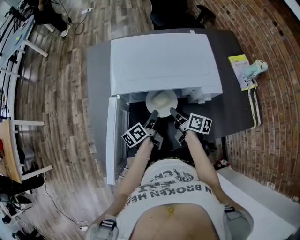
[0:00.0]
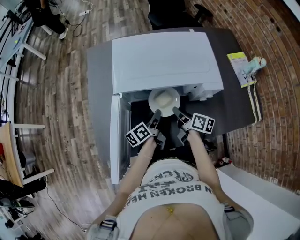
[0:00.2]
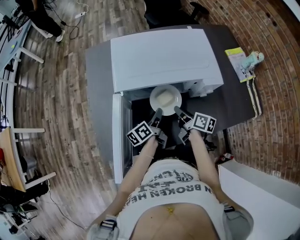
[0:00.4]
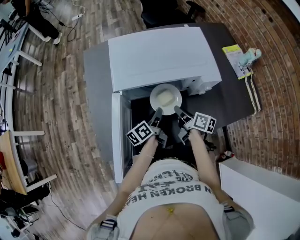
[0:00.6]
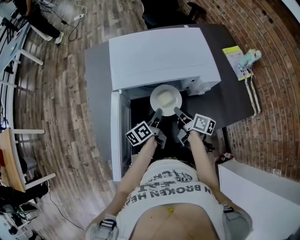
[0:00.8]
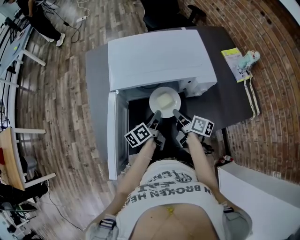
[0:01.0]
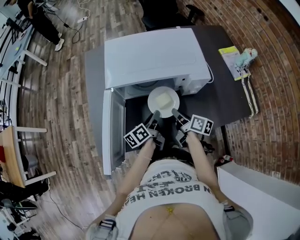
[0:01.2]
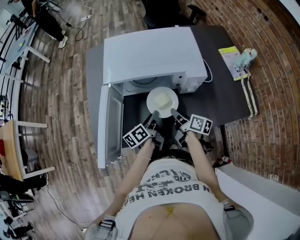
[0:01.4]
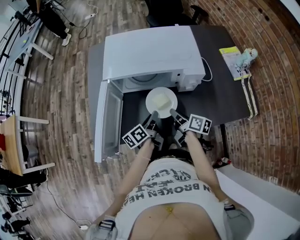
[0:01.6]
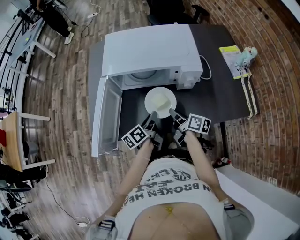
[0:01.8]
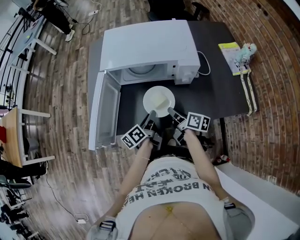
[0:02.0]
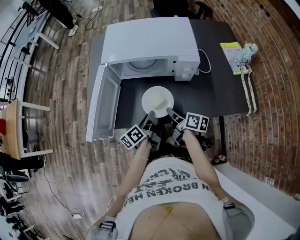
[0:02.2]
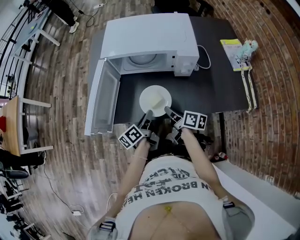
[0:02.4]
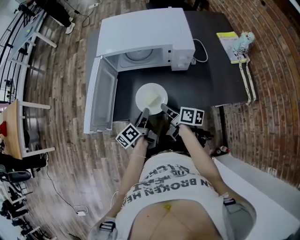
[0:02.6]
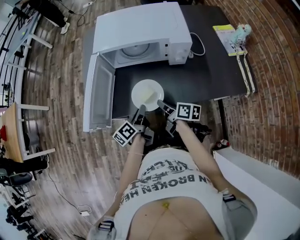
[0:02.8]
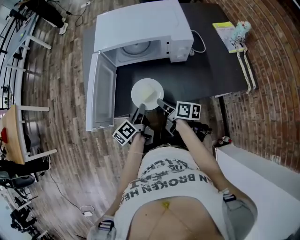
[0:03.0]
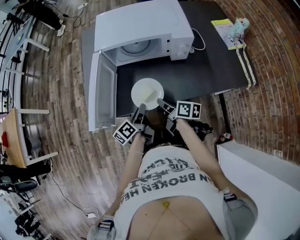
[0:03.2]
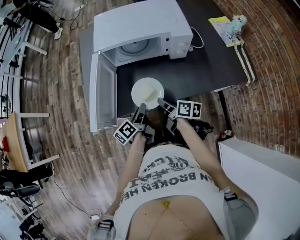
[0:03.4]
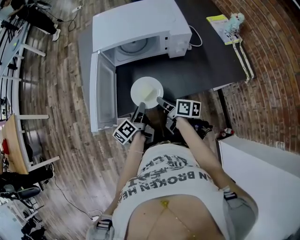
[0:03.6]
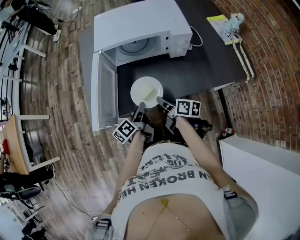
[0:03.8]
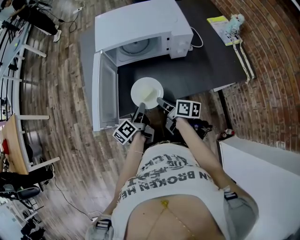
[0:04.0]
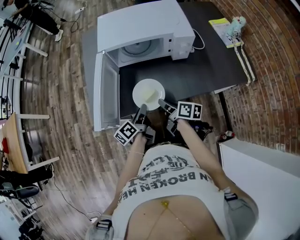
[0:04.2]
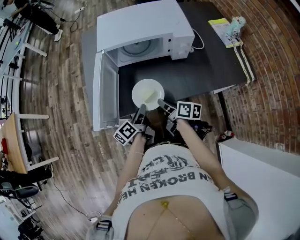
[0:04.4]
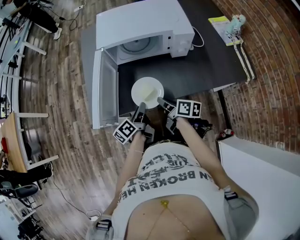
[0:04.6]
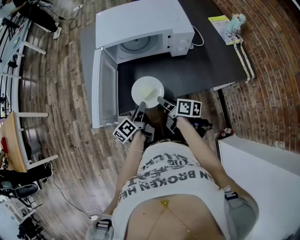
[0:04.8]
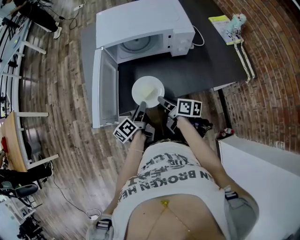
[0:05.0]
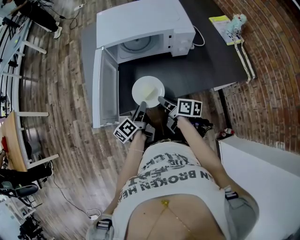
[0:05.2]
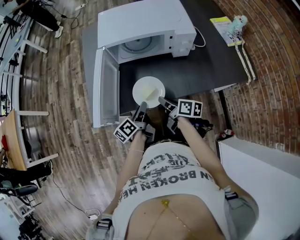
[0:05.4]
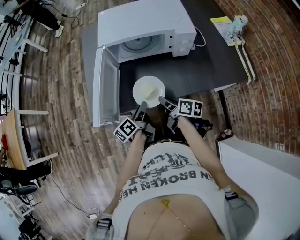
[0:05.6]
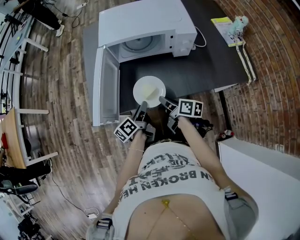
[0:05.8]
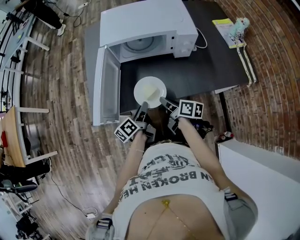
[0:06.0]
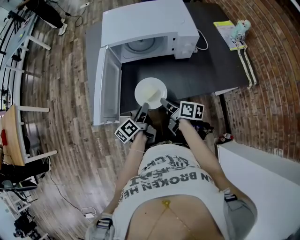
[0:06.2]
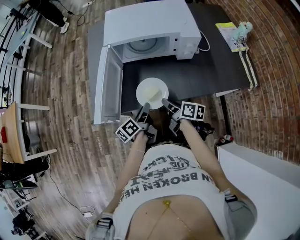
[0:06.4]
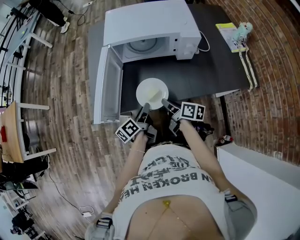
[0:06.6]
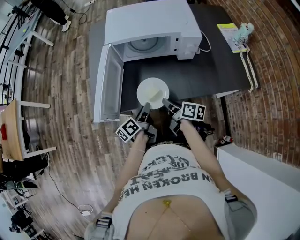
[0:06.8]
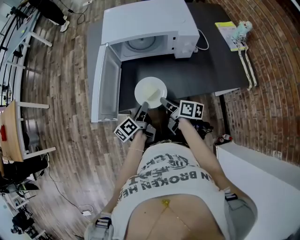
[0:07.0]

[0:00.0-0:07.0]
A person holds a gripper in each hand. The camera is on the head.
0:00.0 to 0:01.4: Both grippers travel together backward, roughly 5 cm.
0:01.4 to 0:02.8: The grippers both shift backward by about 15 cm.
0:02.8 to 0:04.2: The grippers stay close to where they were, moving slightly.
0:04.2 to 0:07.0: Neither gripper changes place.

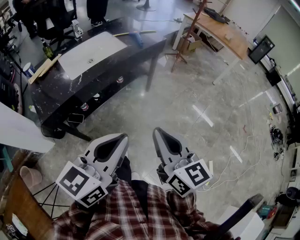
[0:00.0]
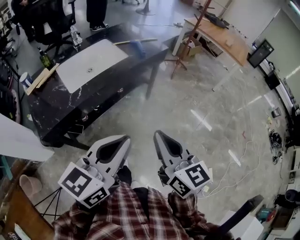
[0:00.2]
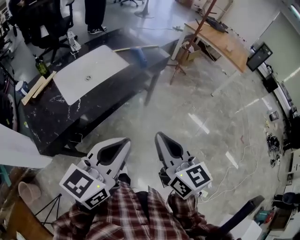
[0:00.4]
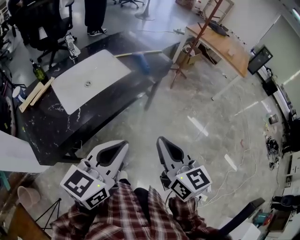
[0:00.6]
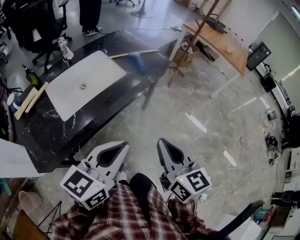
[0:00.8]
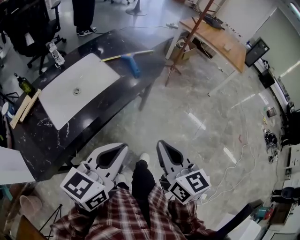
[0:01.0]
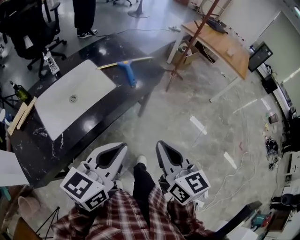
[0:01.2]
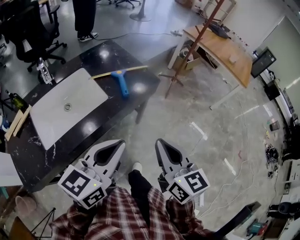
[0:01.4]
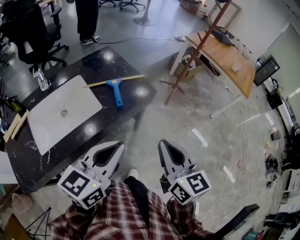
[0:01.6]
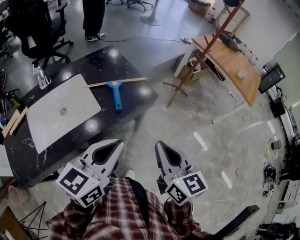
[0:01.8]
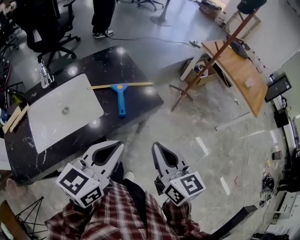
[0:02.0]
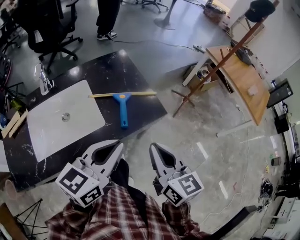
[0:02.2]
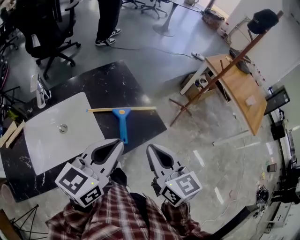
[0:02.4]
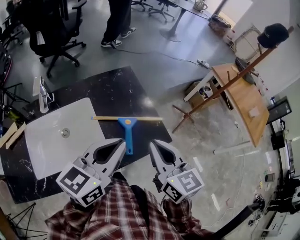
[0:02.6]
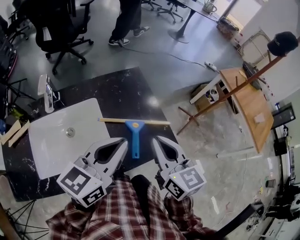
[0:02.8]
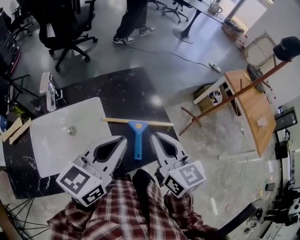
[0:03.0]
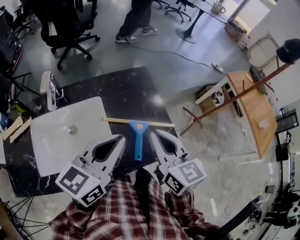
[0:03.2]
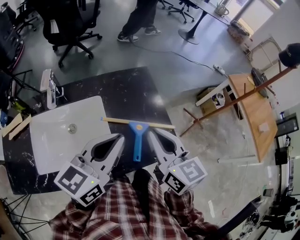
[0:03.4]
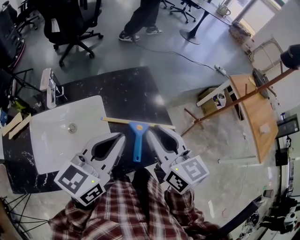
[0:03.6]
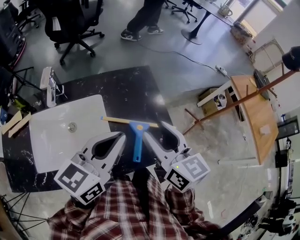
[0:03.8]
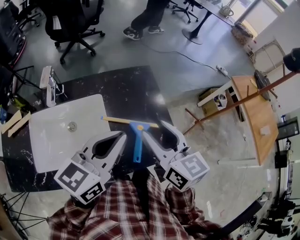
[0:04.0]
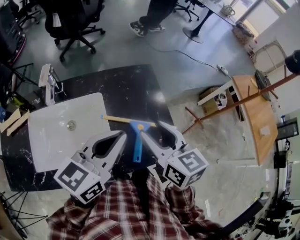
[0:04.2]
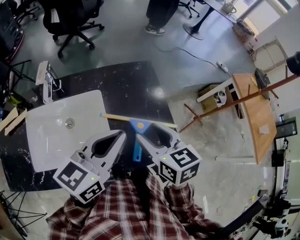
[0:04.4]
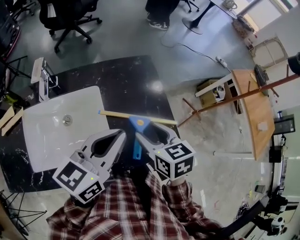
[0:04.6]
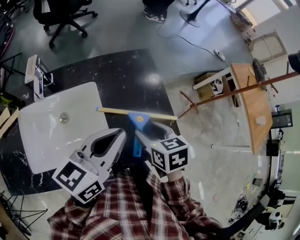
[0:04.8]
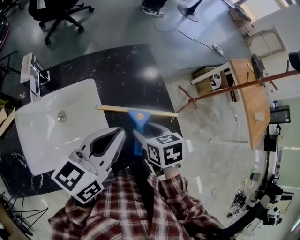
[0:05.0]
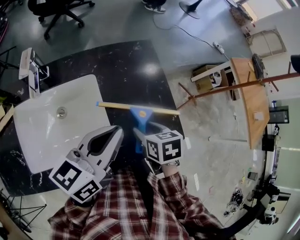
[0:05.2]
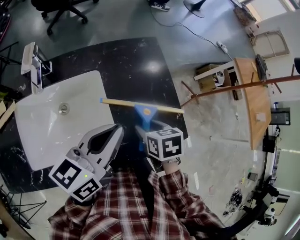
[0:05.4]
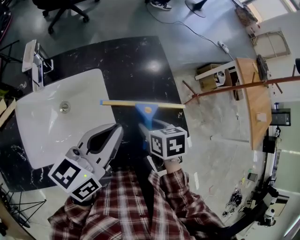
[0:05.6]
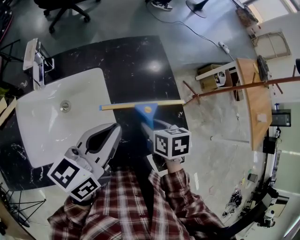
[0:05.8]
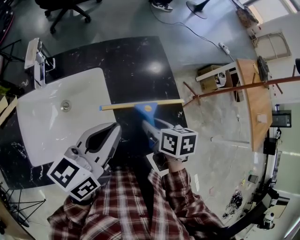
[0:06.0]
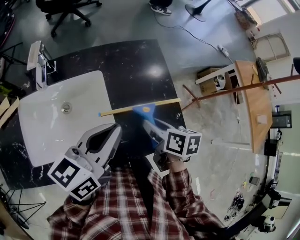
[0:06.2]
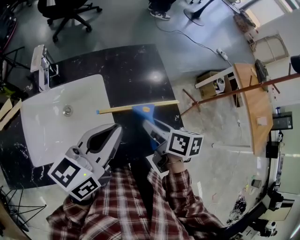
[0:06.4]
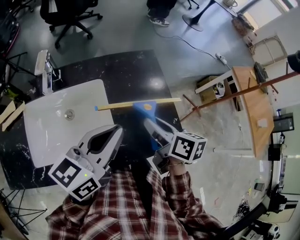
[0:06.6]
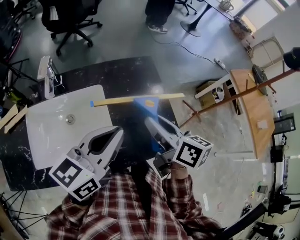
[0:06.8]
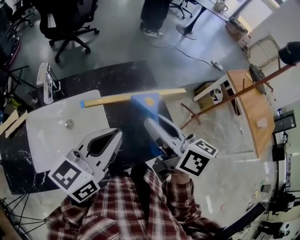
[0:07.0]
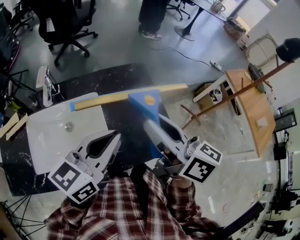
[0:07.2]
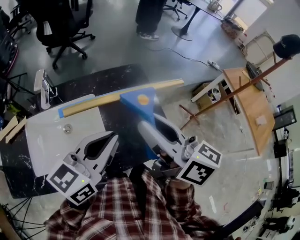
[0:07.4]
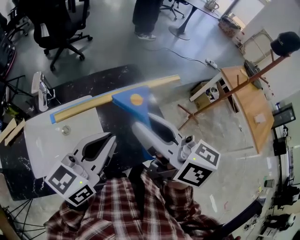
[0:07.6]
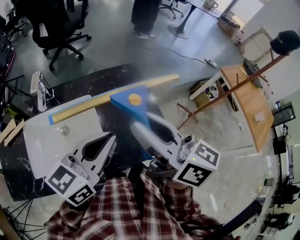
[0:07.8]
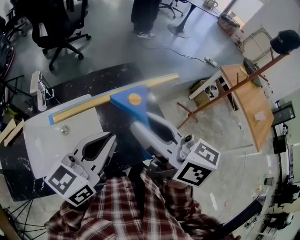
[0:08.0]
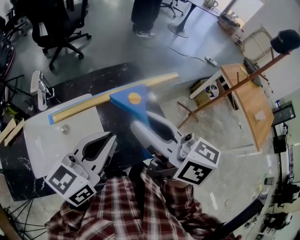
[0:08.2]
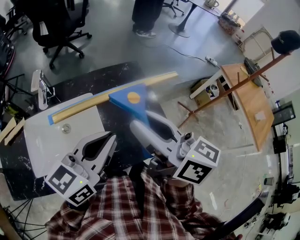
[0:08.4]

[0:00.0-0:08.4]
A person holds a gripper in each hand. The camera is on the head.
0:00.0 to 0:01.4: Both grippers move forward, roughly 40 cm.
0:01.4 to 0:02.8: Both grippers travel together forward, about 30 cm. The right gripper rotates about 20 degrees.
0:02.8 to 0:04.2: The right gripper heads forward, covering approximately 5 cm, and opens its fingers.
0:04.2 to 0:05.6: The right gripper shifts roughly 20 cm downward, and angles its fingers downward, by approximately 40 degrees. The left gripper travels downward by approximately 5 cm.
0:05.6 to 0:07.0: The left gripper goes roughly 5 cm upward; the right gripper shifts some 20 cm upward, and angles its fingers upward, by some 50 degrees.
0:07.0 to 0:08.4: The right gripper heads upward, covering about 5 cm.

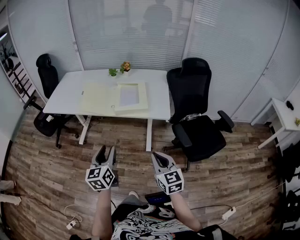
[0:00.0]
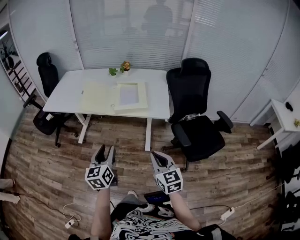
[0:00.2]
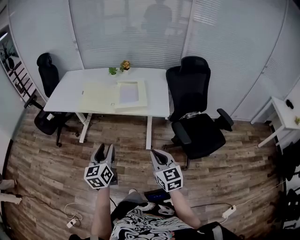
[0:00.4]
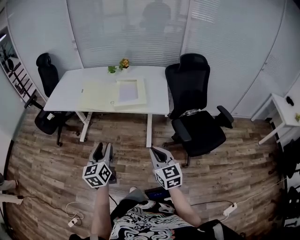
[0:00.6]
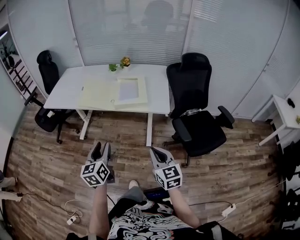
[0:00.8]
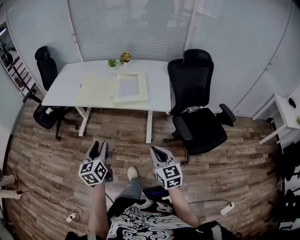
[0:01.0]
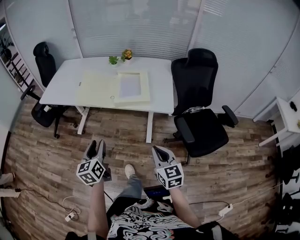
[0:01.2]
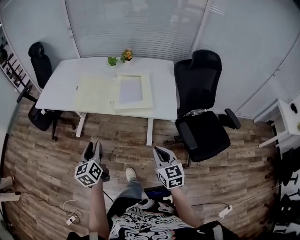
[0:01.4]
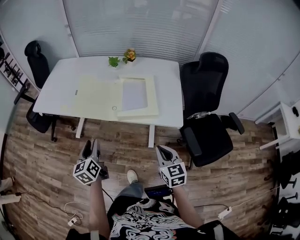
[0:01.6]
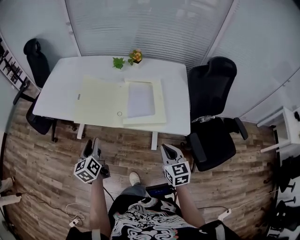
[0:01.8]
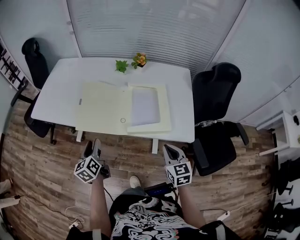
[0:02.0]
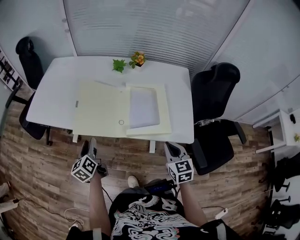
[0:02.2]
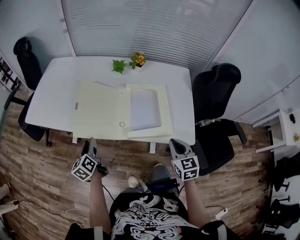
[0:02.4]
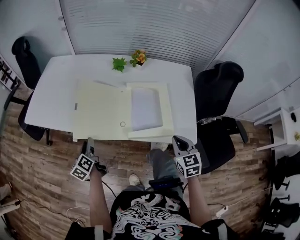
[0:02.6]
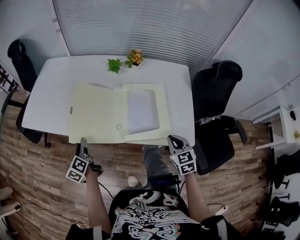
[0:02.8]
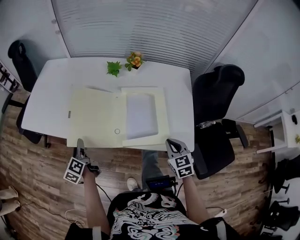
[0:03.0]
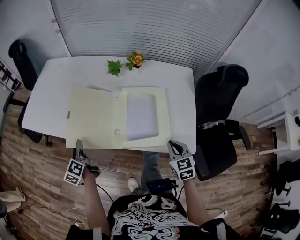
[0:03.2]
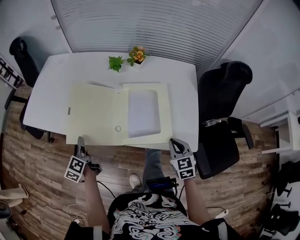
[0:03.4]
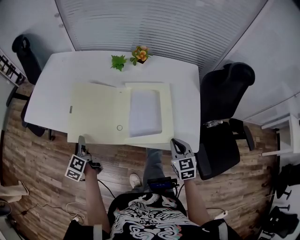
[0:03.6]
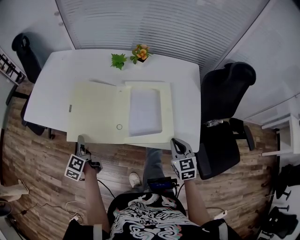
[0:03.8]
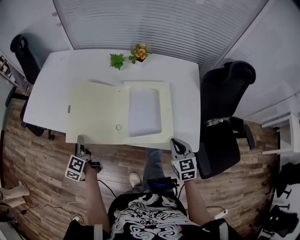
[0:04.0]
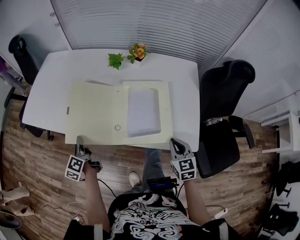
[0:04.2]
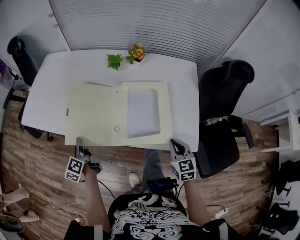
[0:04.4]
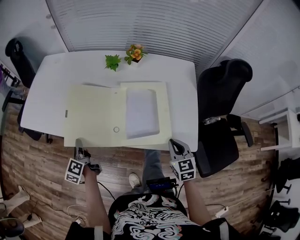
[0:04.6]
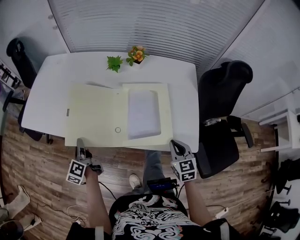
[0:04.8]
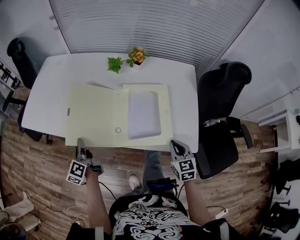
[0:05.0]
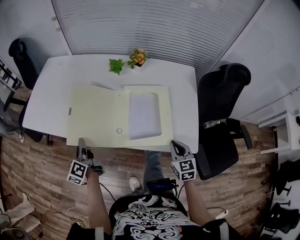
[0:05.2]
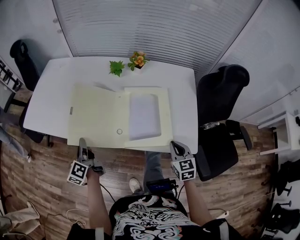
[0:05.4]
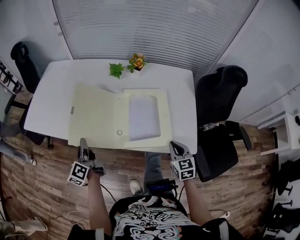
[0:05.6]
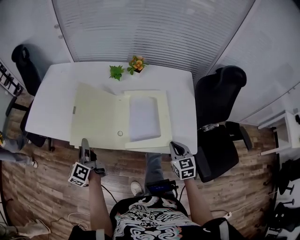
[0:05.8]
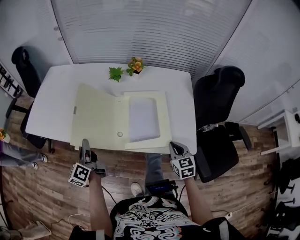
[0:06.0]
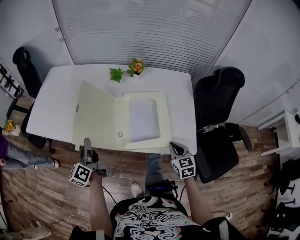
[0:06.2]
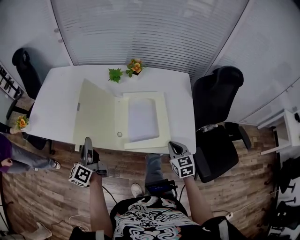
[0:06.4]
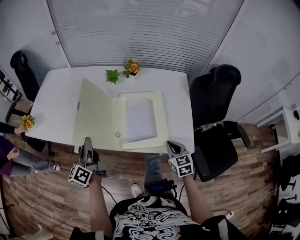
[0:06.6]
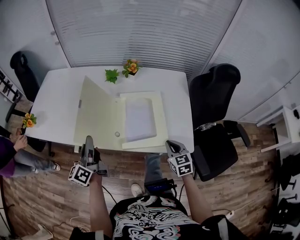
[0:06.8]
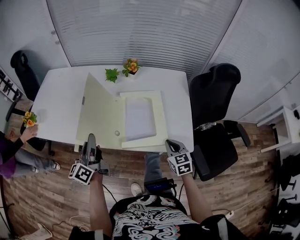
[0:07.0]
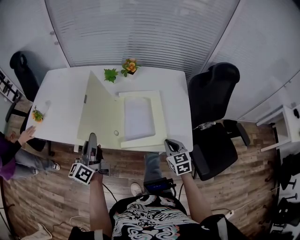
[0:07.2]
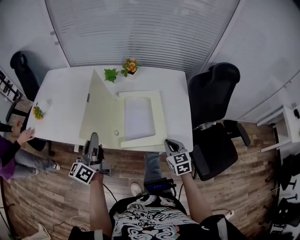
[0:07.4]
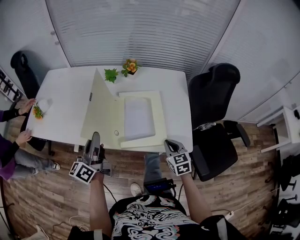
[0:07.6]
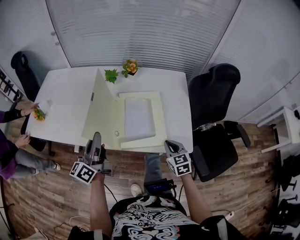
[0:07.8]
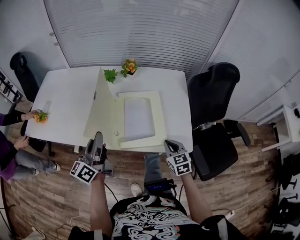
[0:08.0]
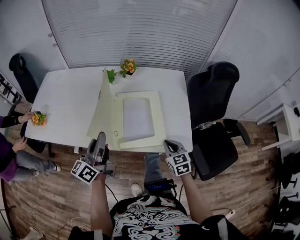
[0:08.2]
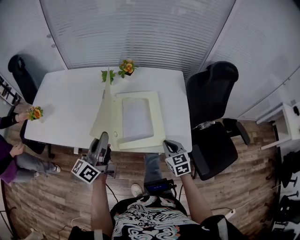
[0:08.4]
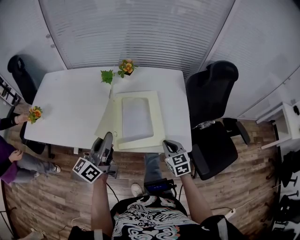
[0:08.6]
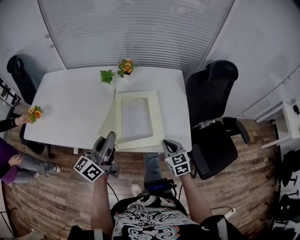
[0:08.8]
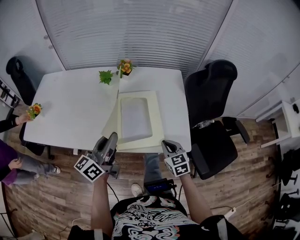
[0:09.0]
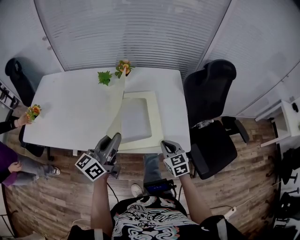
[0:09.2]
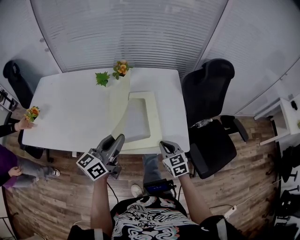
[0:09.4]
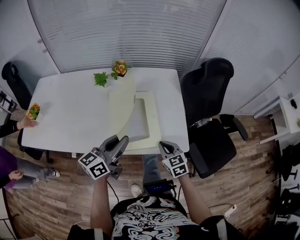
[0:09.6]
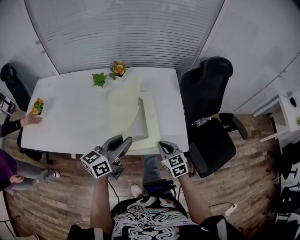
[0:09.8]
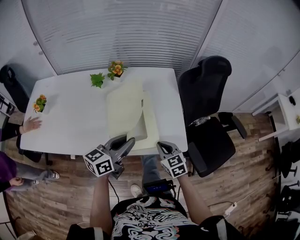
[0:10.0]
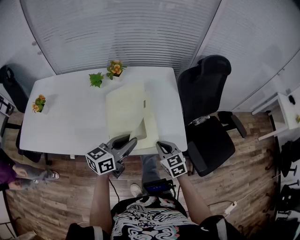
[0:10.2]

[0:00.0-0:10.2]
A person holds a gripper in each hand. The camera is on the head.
0:00.0 to 0:01.4: The right gripper moves forward and downward, some 10 cm, while the left gripper travels forward, to the left and downward by roughly 15 cm.
0:01.4 to 0:03.0: Both grippers move forward, some 30 cm. The left gripper turns by roughly 30 degrees.
0:03.0 to 0:04.4: The left gripper closes its fingers.
0:04.4 to 0:05.8: The left gripper travels upward by approximately 5 cm.
0:05.8 to 0:07.2: The left gripper heads to the right and upward, covering some 10 cm, and turns by roughly 20 degrees.
0:07.2 to 0:08.8: The left gripper travels to the right by about 10 cm, and changes its angle by about 20 degrees.
0:08.8 to 0:10.2: The left gripper moves to the right and downward, about 15 cm, and turns by some 30 degrees.
